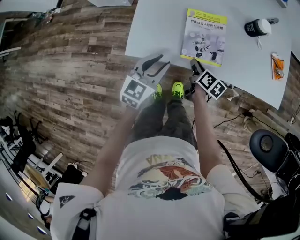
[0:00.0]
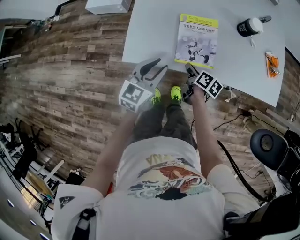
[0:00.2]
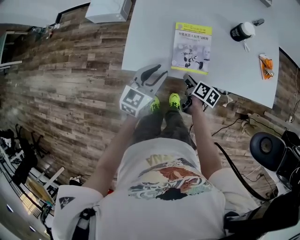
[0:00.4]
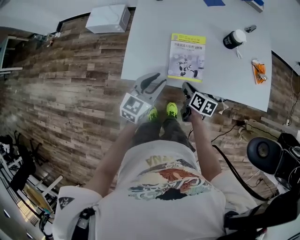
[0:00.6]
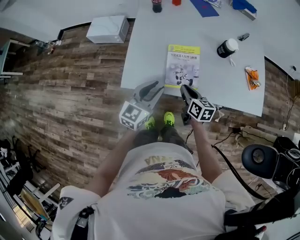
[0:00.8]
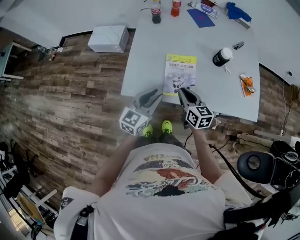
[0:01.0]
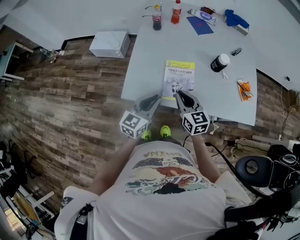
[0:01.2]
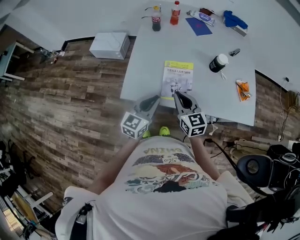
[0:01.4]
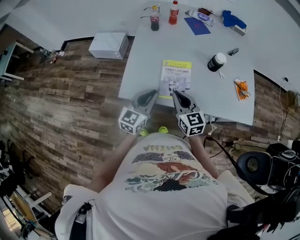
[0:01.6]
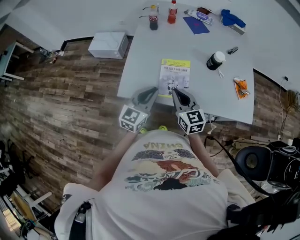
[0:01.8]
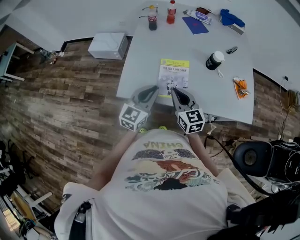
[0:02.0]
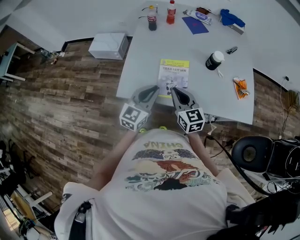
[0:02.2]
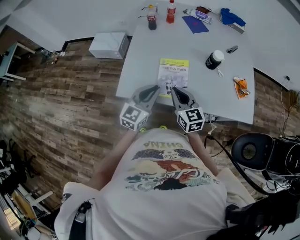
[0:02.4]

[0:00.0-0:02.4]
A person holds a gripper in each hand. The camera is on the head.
0:00.0 to 0:01.2: The left gripper is displaced upward by approximately 10 cm. The right gripper travels upward by some 25 cm, and rolls counterclockwise, seen from behind, by some 50 degrees.
0:01.2 to 0:02.4: The grippers move only a little.

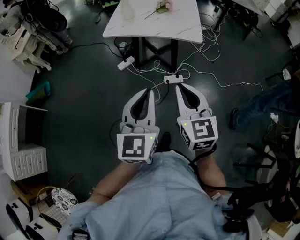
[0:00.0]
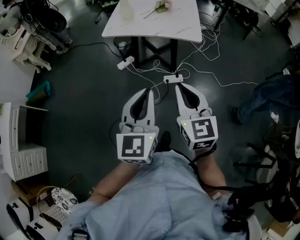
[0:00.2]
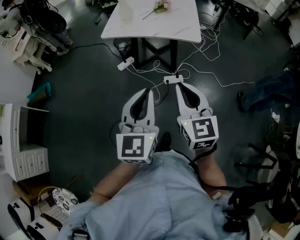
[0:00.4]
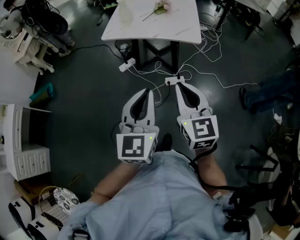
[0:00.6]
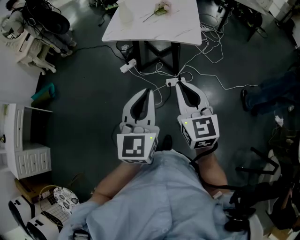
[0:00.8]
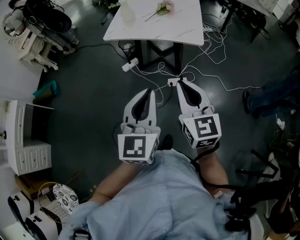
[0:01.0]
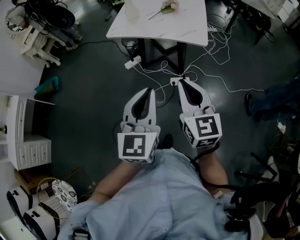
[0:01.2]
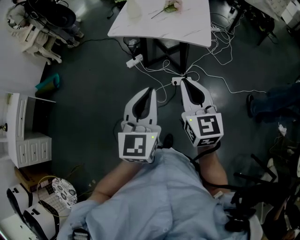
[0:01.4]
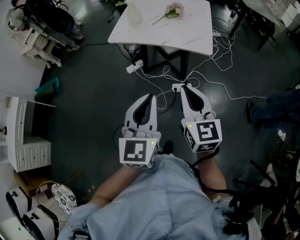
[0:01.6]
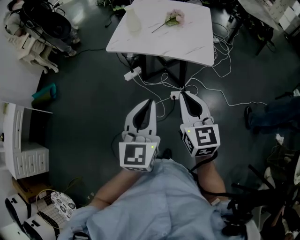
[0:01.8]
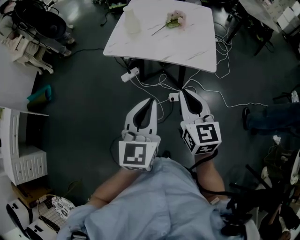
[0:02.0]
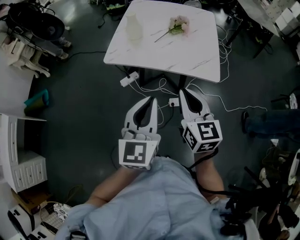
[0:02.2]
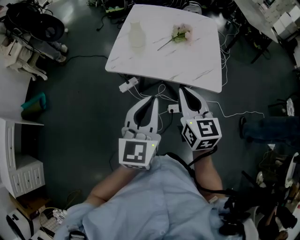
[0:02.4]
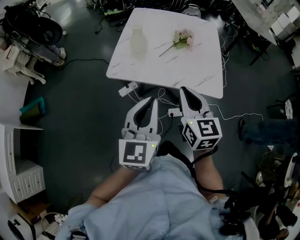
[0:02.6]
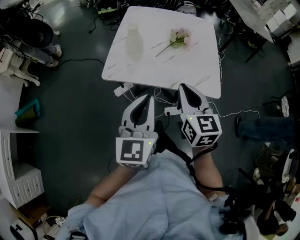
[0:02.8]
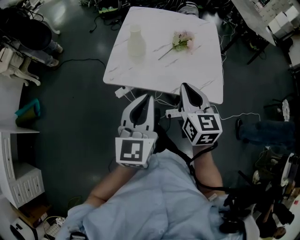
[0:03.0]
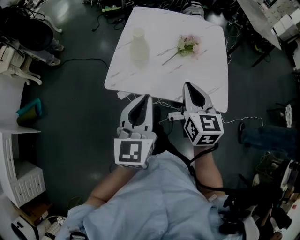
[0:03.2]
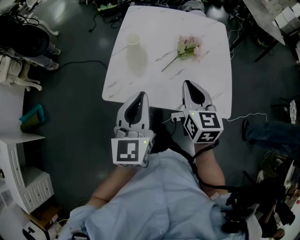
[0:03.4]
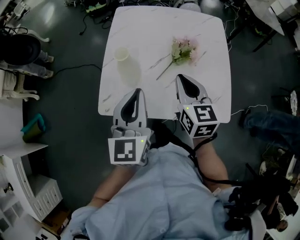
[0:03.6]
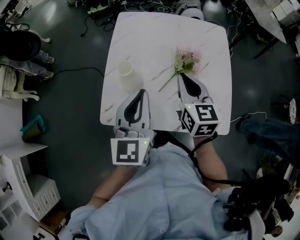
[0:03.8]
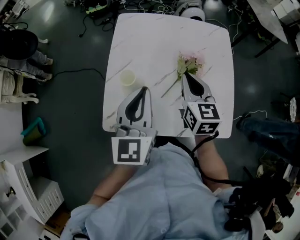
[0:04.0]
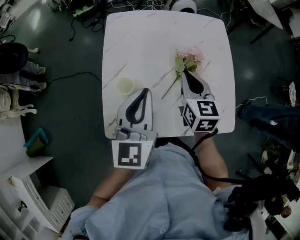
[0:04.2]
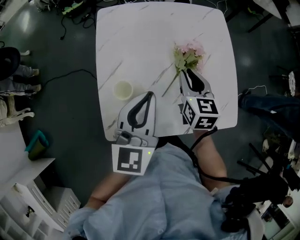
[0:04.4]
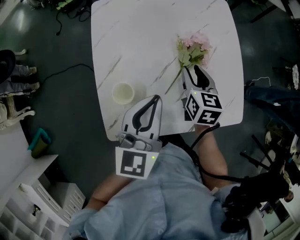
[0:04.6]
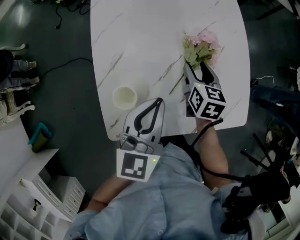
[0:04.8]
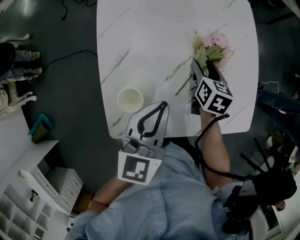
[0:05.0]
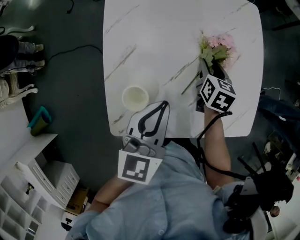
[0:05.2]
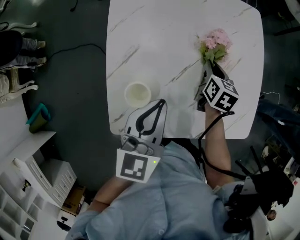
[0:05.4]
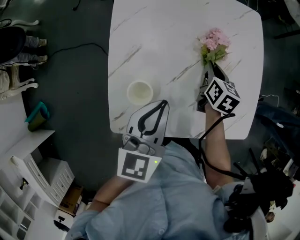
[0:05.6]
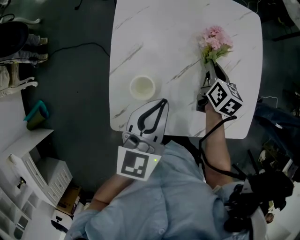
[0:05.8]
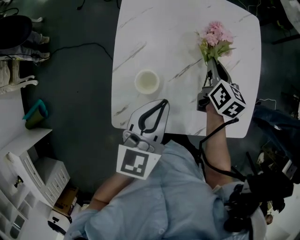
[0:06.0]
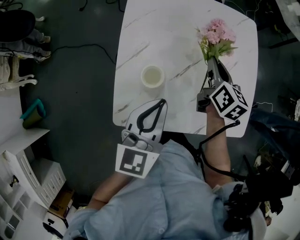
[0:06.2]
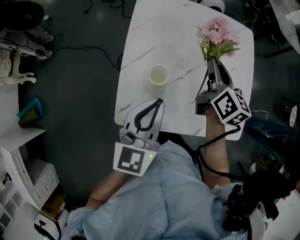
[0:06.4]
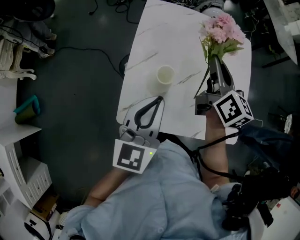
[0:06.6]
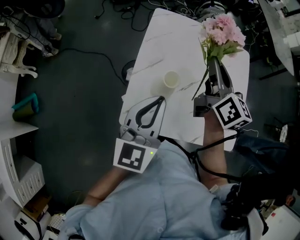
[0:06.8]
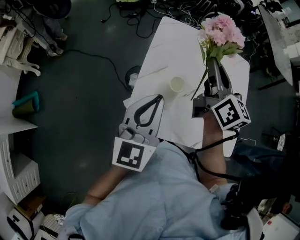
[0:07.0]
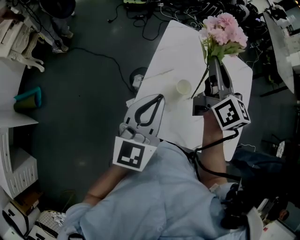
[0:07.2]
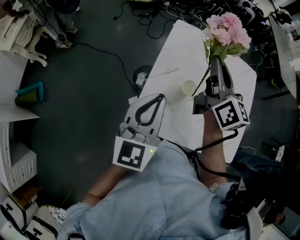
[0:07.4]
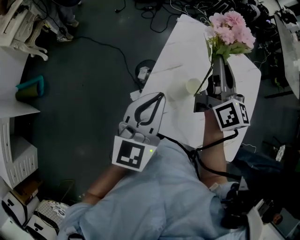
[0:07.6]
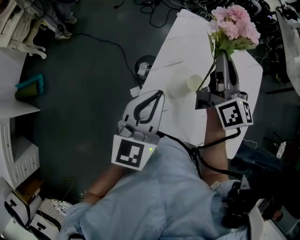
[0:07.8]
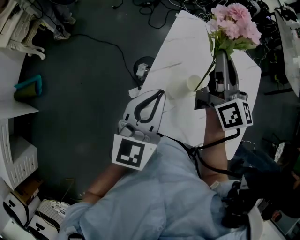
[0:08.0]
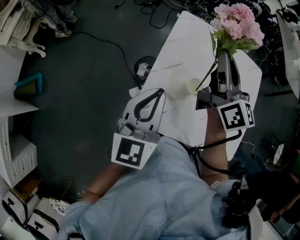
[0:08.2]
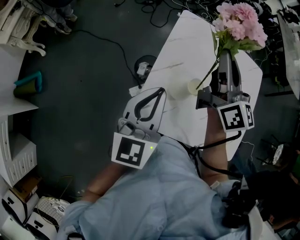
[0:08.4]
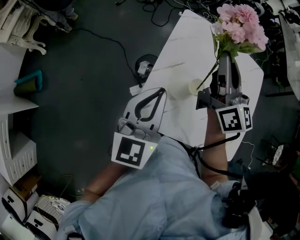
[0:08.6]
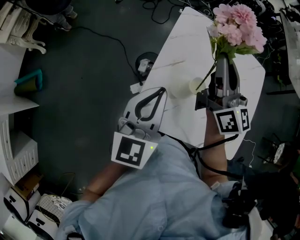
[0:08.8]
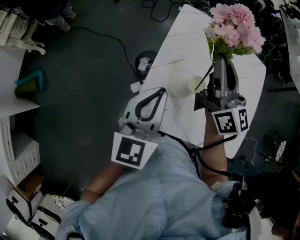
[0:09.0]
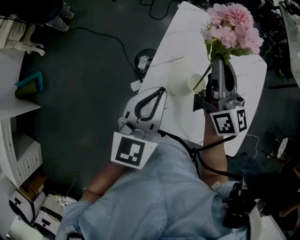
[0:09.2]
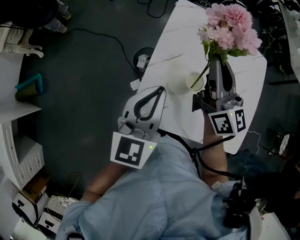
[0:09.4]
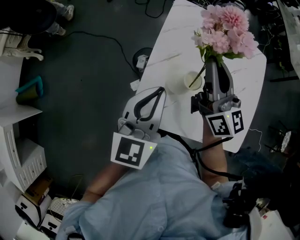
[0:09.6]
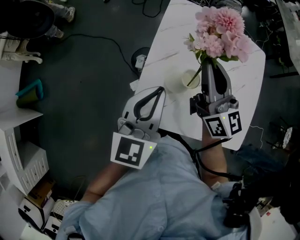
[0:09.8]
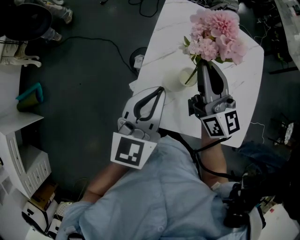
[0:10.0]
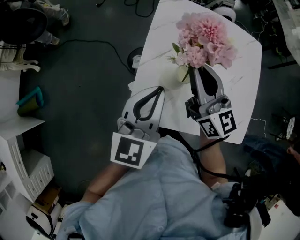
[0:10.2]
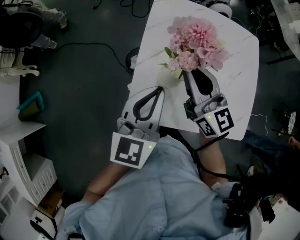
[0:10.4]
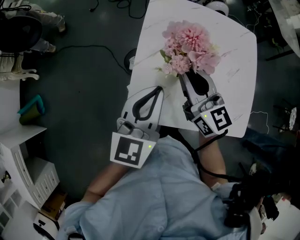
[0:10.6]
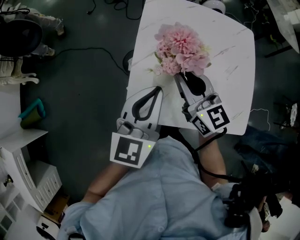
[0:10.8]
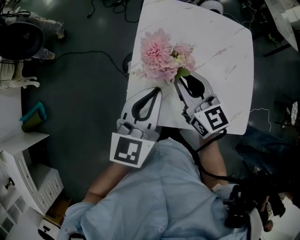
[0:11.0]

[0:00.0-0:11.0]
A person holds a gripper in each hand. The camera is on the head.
0:00.0 to 0:01.6: Both grippers travel together forward, some 10 cm.
0:01.6 to 0:03.2: Both grippers travel together forward, some 35 cm.
0:03.2 to 0:04.8: The left gripper goes approximately 25 cm forward, and swivels approximately 30 degrees. Meanwhile the right gripper shifts approximately 35 cm forward and downward, swivels about 30 degrees, and opens up.
0:04.8 to 0:06.2: The right gripper heads upward, covering about 10 cm, and closes; the left gripper goes some 5 cm backward.
0:06.2 to 0:07.8: The right gripper shifts some 25 cm upward and to the left, and tips its fingers upward by some 30 degrees, while the left gripper heads to the left and upward, covering roughly 15 cm, and changes its angle by roughly 20 degrees.
0:07.8 to 0:09.4: The right gripper moves roughly 5 cm.
0:09.4 to 0:11.0: The right gripper moves downward and backward, roughly 10 cm, and changes its angle by some 20 degrees.

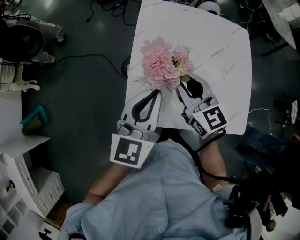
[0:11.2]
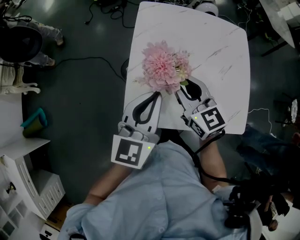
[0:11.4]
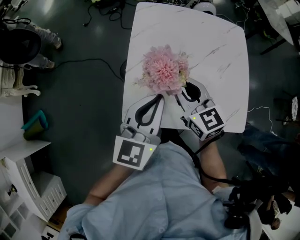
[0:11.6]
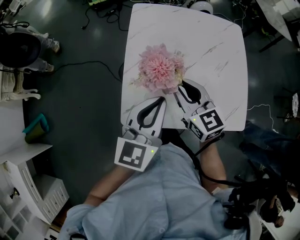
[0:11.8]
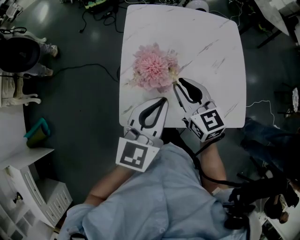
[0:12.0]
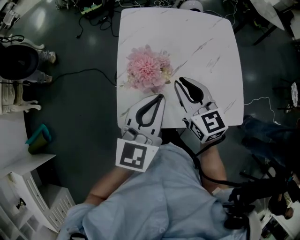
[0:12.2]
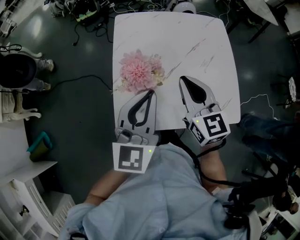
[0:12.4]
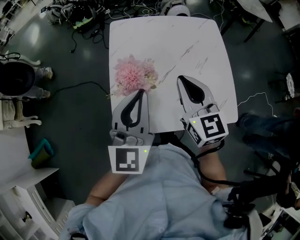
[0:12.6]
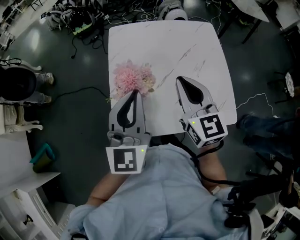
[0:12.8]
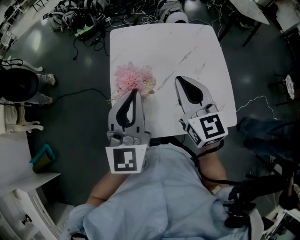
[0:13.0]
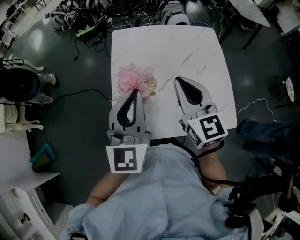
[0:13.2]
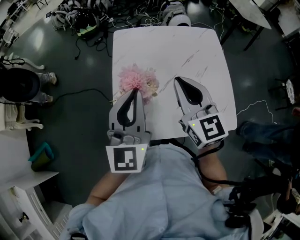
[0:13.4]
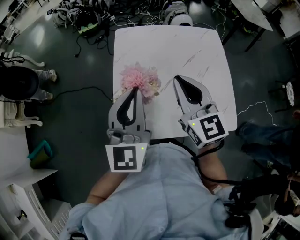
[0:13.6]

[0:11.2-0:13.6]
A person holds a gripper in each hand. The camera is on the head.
0:11.2 to 0:12.4: The right gripper goes some 10 cm to the right, while the left gripper goes approximately 5 cm to the right.
0:12.4 to 0:13.6: The right gripper travels upward by approximately 5 cm. The left gripper ends up about 5 cm from where it was.

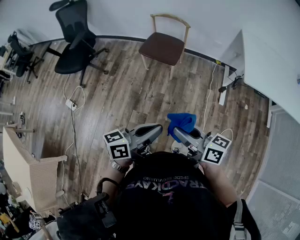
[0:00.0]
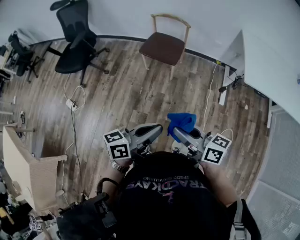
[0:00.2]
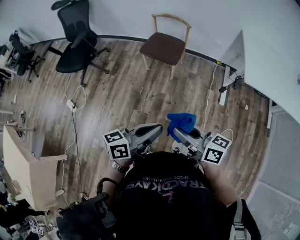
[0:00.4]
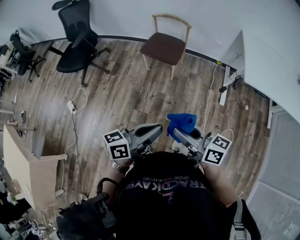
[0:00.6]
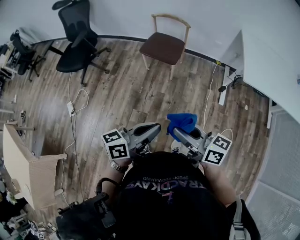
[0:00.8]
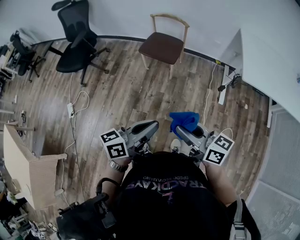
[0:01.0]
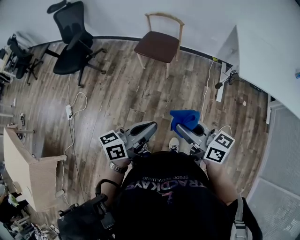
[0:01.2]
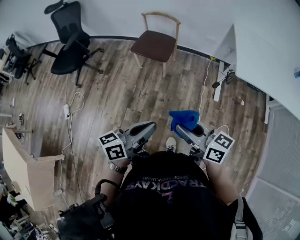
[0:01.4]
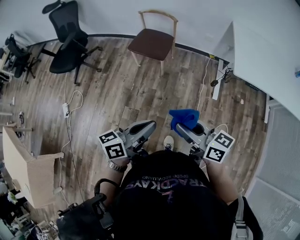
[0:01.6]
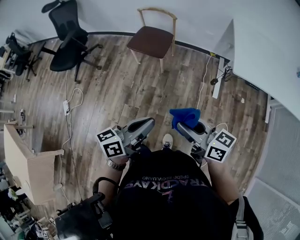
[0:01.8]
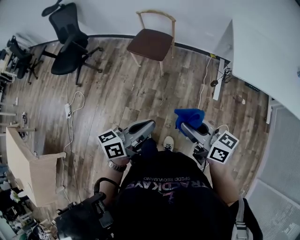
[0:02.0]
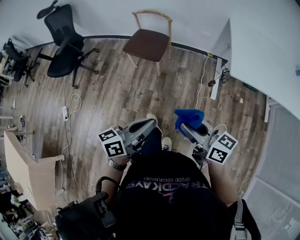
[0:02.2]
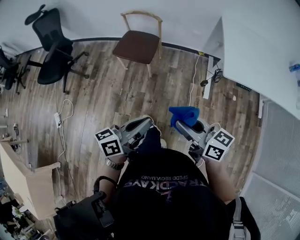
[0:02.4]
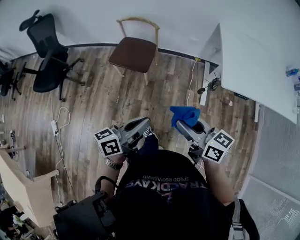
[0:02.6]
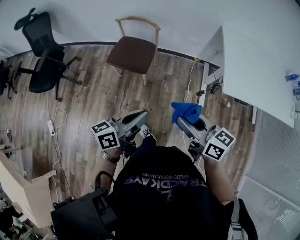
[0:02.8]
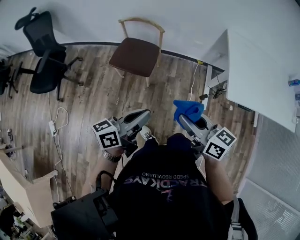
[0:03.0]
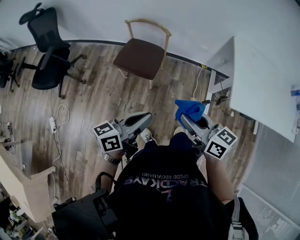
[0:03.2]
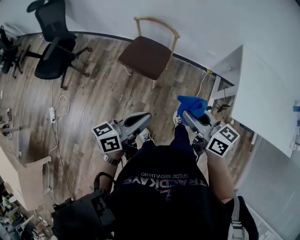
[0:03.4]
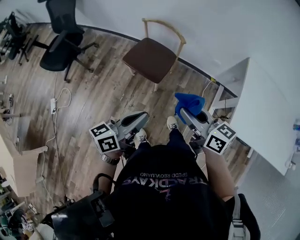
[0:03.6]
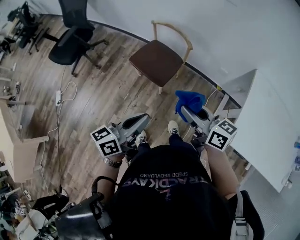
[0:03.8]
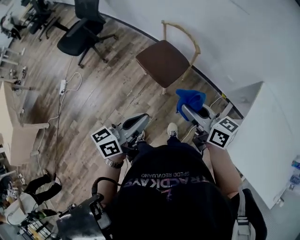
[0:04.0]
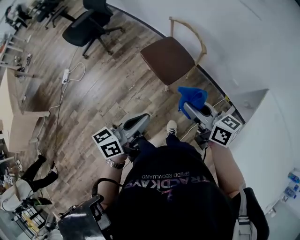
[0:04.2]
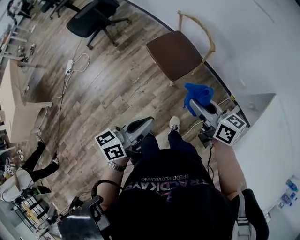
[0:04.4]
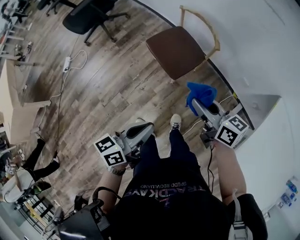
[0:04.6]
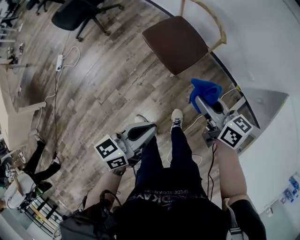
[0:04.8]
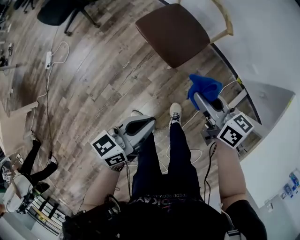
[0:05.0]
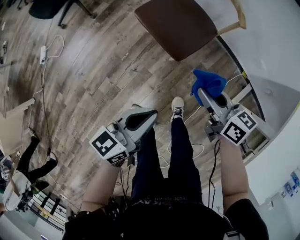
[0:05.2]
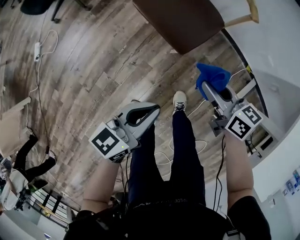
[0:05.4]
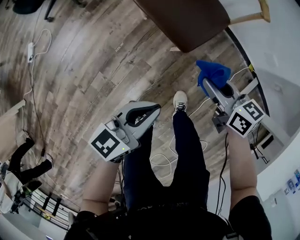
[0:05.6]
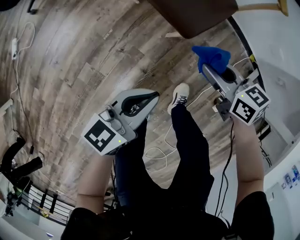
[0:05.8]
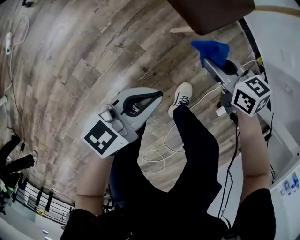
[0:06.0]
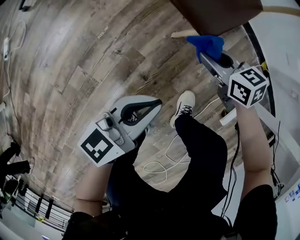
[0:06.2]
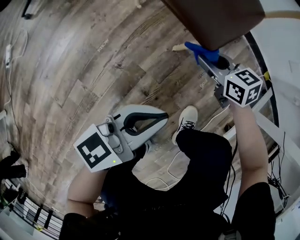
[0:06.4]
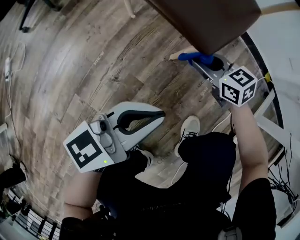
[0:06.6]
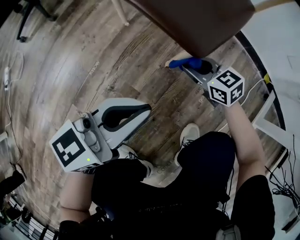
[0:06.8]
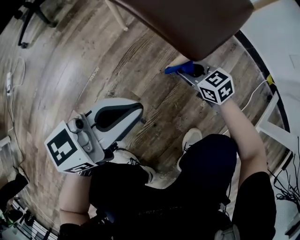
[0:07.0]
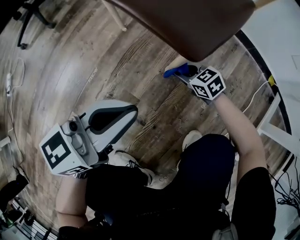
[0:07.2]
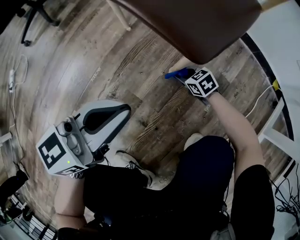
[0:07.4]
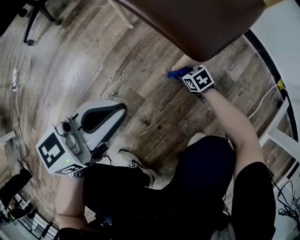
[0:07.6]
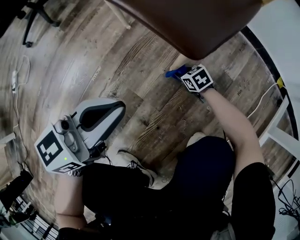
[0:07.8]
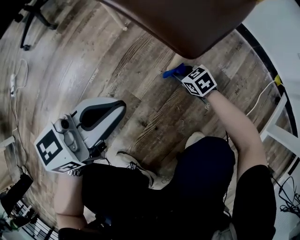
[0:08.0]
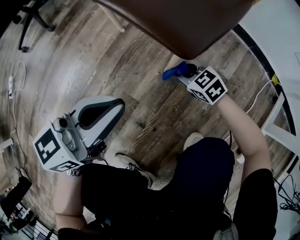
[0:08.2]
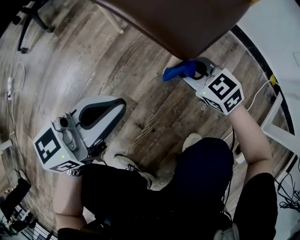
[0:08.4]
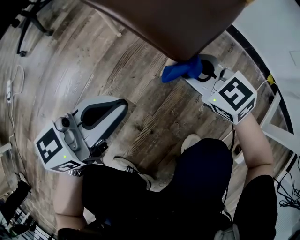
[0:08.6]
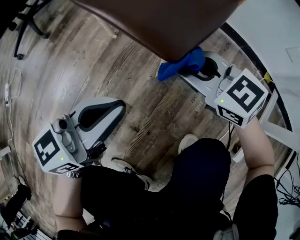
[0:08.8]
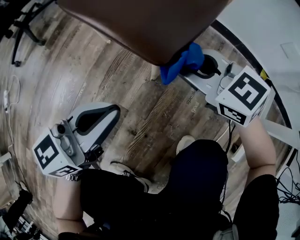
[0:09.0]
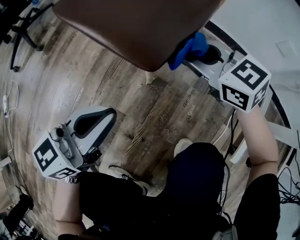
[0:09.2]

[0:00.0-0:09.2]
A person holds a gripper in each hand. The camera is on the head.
0:00.0 to 0:01.6: Both grippers move to the right, approximately 10 cm.
0:01.6 to 0:03.0: The grippers both shift forward by roughly 25 cm.
0:03.0 to 0:04.6: The left gripper changes place by approximately 10 cm, and rotates some 40 degrees; the right gripper changes place by approximately 30 cm, and rotates about 30 degrees.
0:04.6 to 0:06.2: Both grippers move downward, approximately 50 cm. The right gripper swivels about 30 degrees.
0:06.2 to 0:07.6: The left gripper is displaced downward and forward by some 15 cm; the right gripper moves downward, roughly 35 cm.
0:07.6 to 0:09.2: The right gripper shifts about 35 cm upward, and rotates roughly 30 degrees; the left gripper moves some 5 cm.
